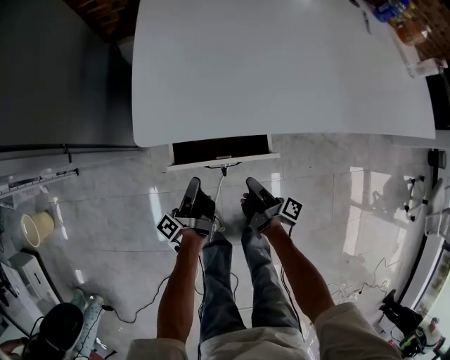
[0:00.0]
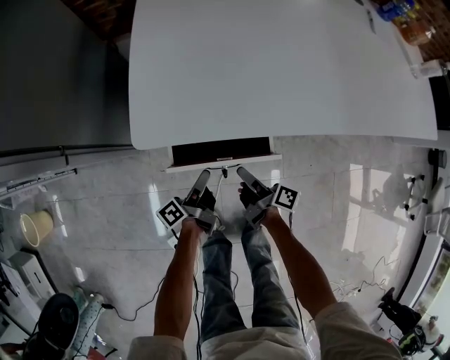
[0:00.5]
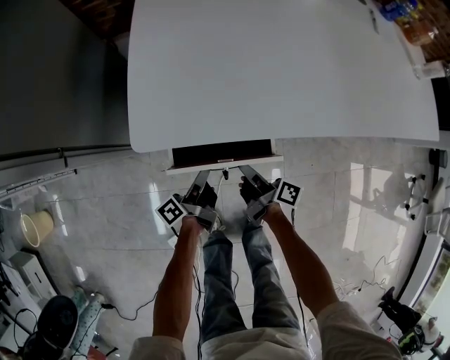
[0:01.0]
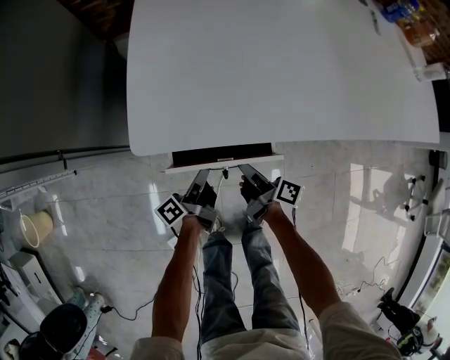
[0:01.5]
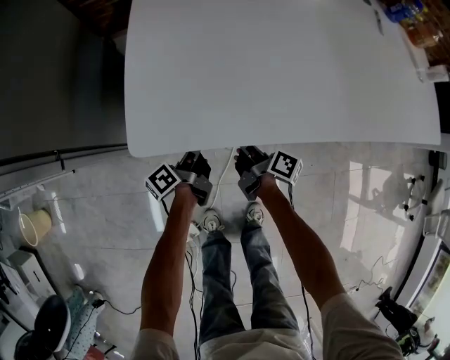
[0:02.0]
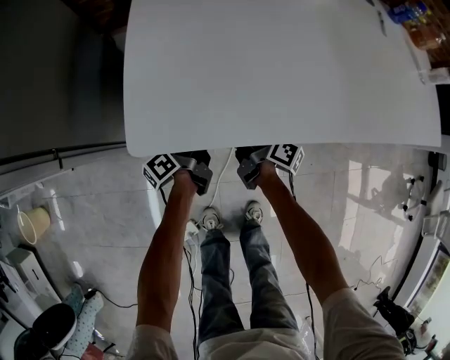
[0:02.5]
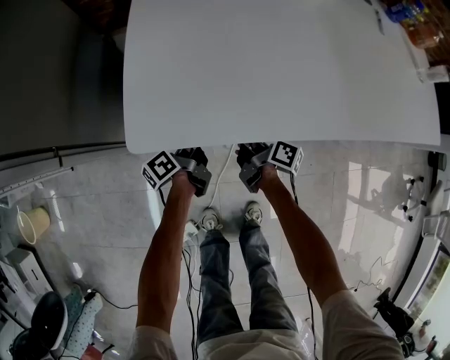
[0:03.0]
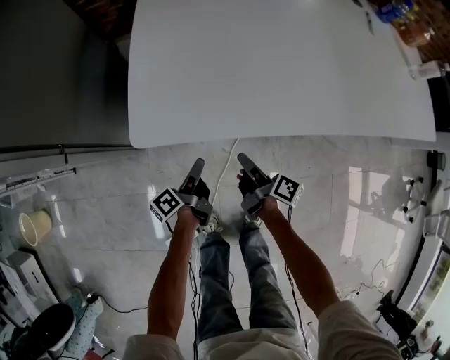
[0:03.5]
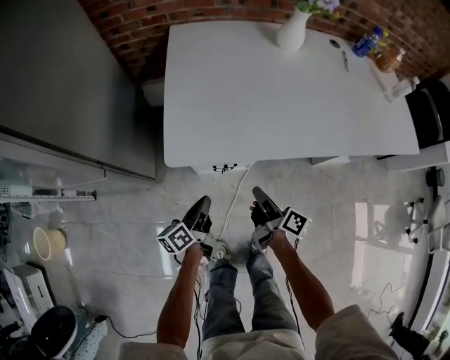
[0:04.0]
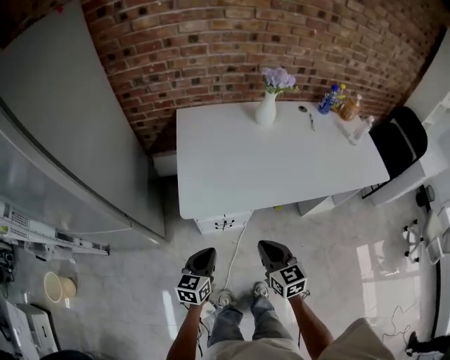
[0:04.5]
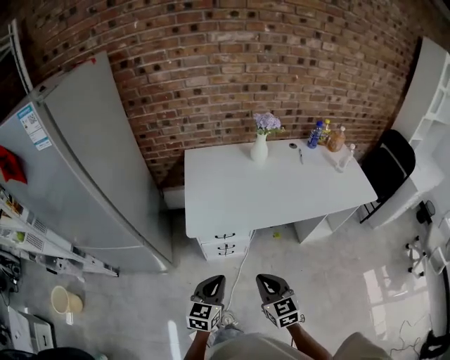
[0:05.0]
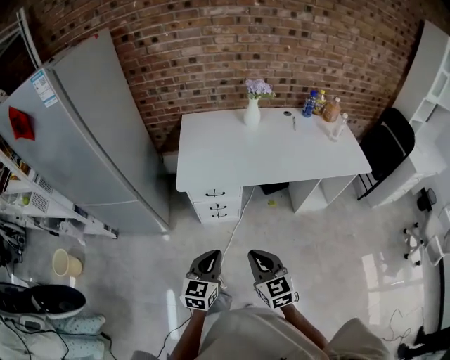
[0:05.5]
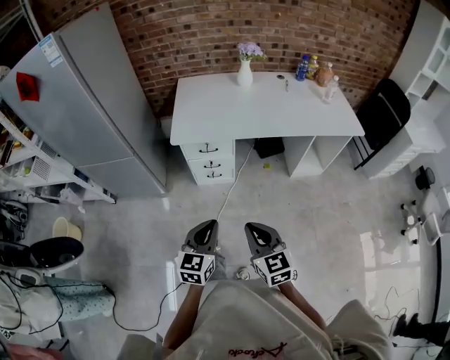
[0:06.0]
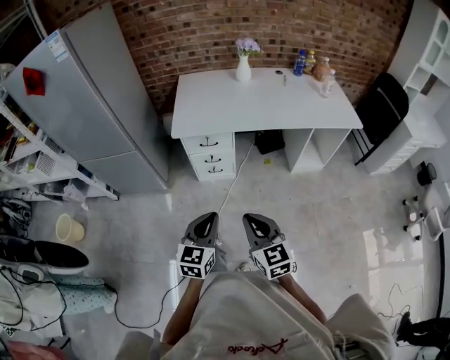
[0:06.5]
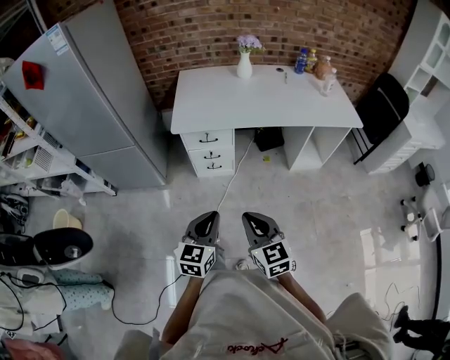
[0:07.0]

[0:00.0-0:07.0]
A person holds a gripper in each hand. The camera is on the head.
0:00.0 to 0:02.0: The grippers both shift forward by roughly 15 cm. The right gripper opens, then closes again; the left gripper swivels approximately 30 degrees, and opens, then closes once more.
0:02.0 to 0:03.5: Both grippers travel together backward, roughly 10 cm. The left gripper opens its fingers. Meanwhile the right gripper opens up.
0:03.5 to 0:05.0: The grippers both shift upward and backward by some 40 cm. The right gripper rolls counterclockwise, seen from behind, by roughly 80 degrees, and closes, while the left gripper twists some 80 degrees clockwise, seen from behind, and closes.
0:05.0 to 0:07.0: The left gripper travels backward and to the right by roughly 30 cm; the right gripper is displaced backward by about 25 cm.

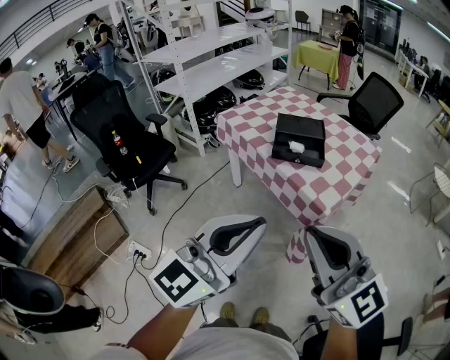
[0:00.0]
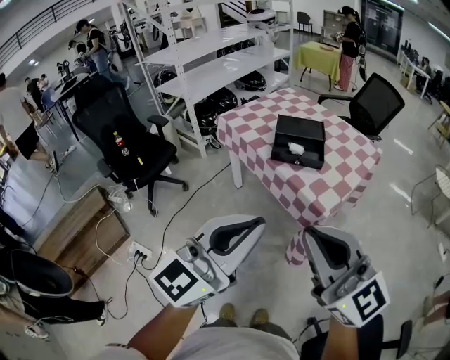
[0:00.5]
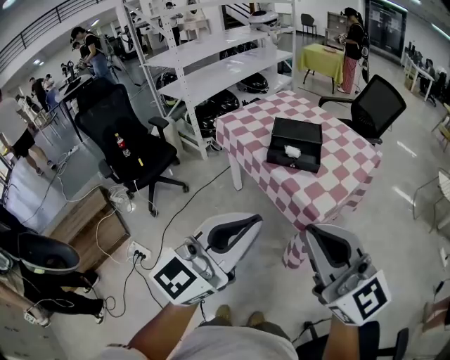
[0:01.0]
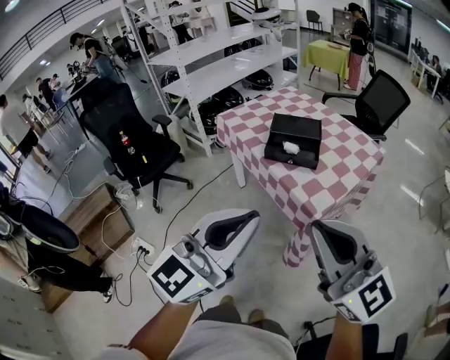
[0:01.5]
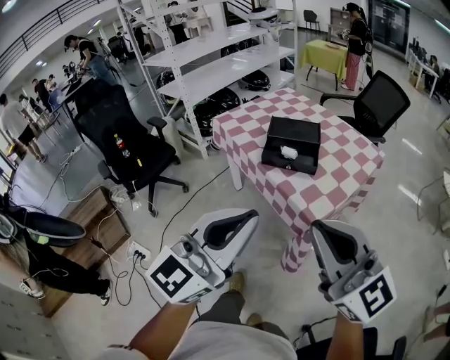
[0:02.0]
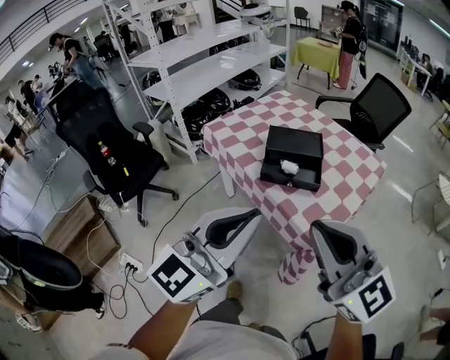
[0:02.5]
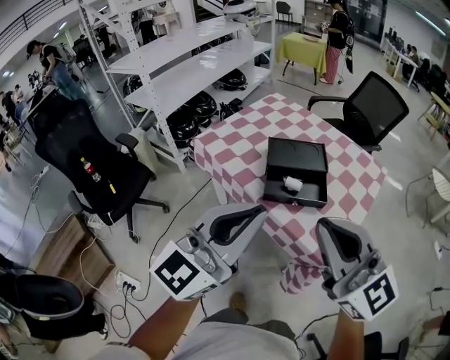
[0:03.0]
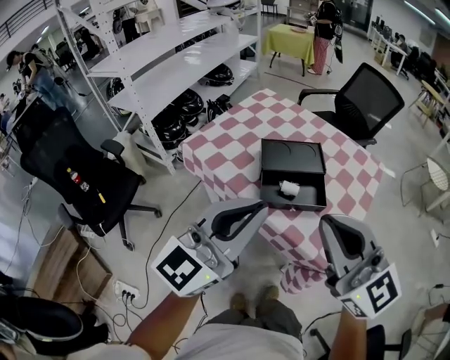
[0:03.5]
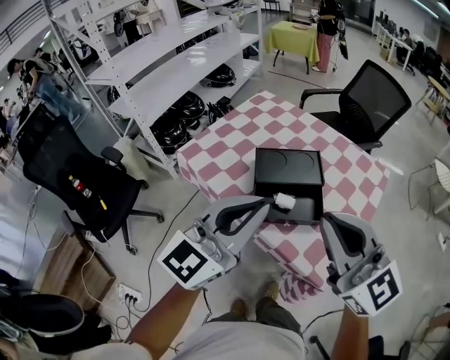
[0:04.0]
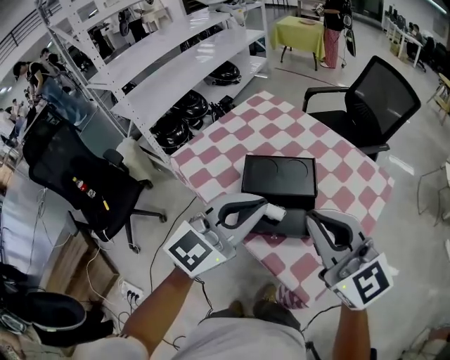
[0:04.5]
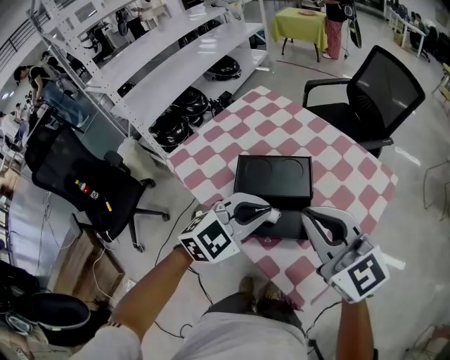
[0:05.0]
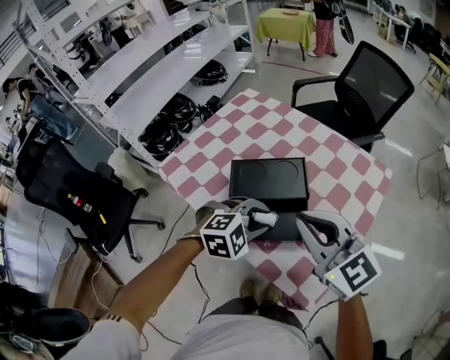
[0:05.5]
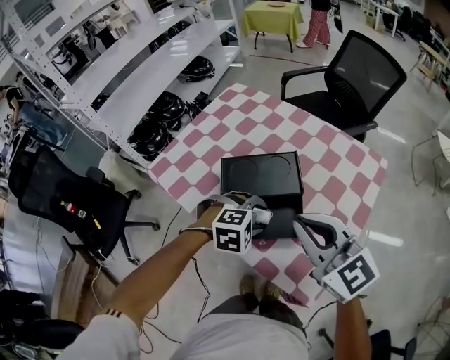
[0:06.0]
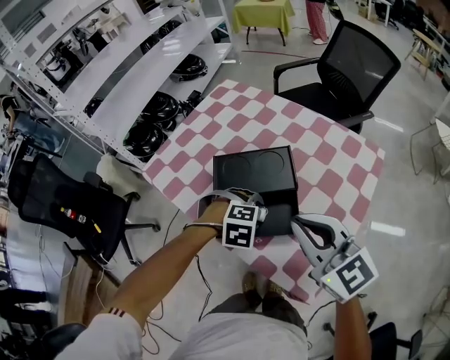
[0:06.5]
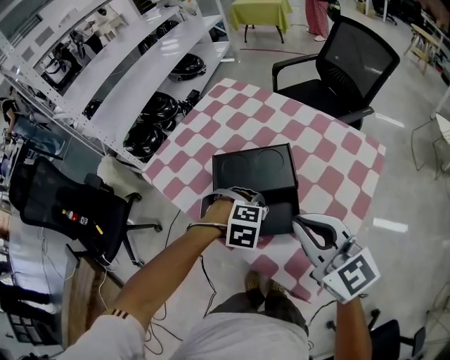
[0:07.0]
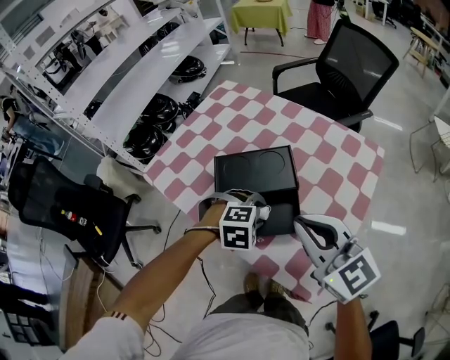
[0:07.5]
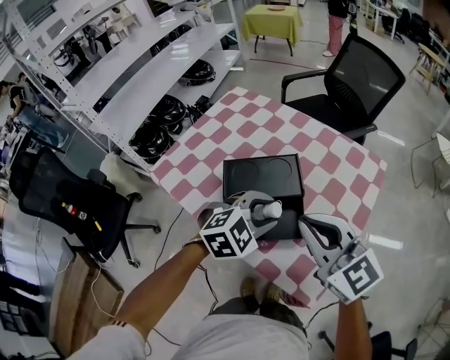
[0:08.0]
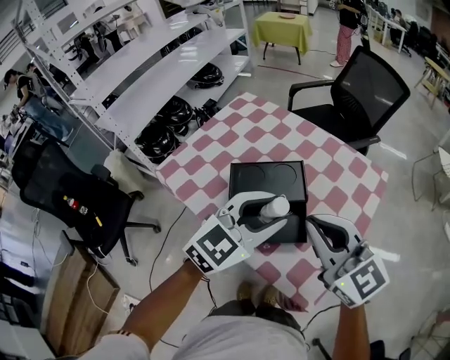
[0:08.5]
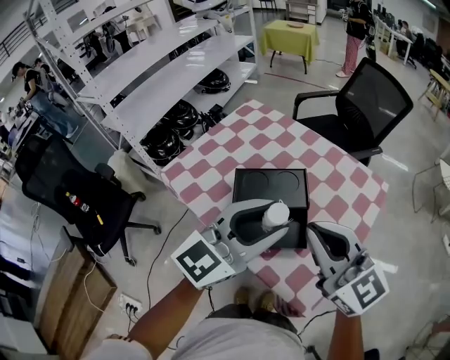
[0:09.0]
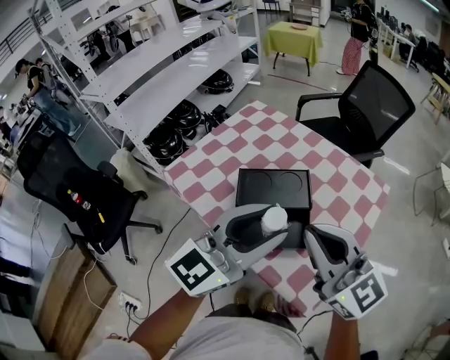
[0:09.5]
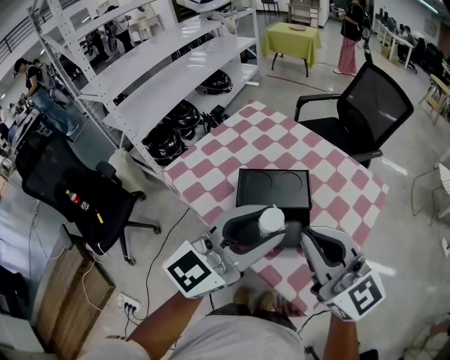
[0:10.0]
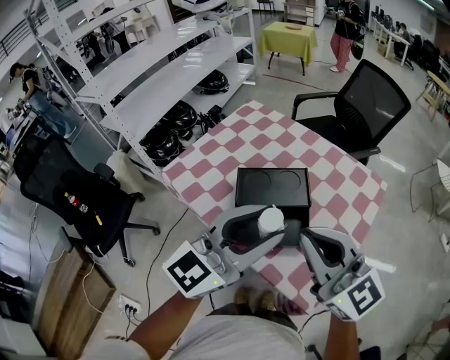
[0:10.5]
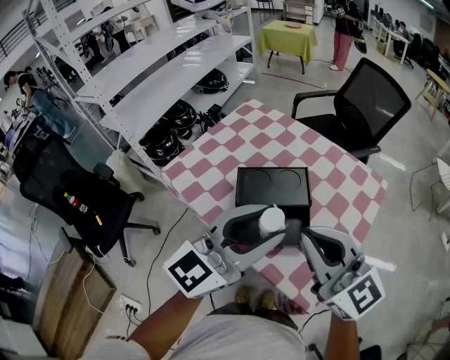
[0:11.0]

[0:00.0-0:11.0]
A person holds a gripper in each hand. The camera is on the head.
0:00.0 to 0:02.0: The two grippers go roughly 10 cm to the right and forward.
0:02.0 to 0:03.5: Both grippers move forward, roughly 25 cm.
0:03.5 to 0:05.5: The right gripper shifts about 25 cm forward, downward and to the right; the left gripper travels downward, forward and to the right by approximately 35 cm, points its fingers about 60 degrees further downward, and opens.
0:05.5 to 0:07.5: The left gripper moves downward, approximately 5 cm.
0:07.5 to 0:09.0: The right gripper travels upward by about 10 cm. The left gripper goes some 25 cm upward, and tilts its fingers approximately 70 degrees upward.
0:09.0 to 0:11.0: The grippers stay close to where they were, moving slightly.

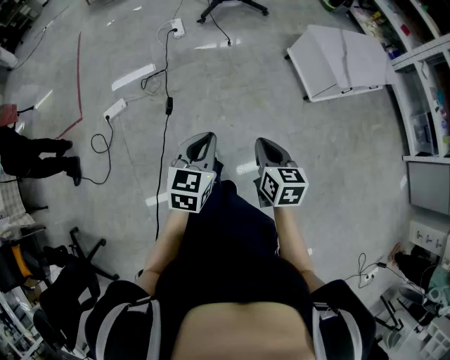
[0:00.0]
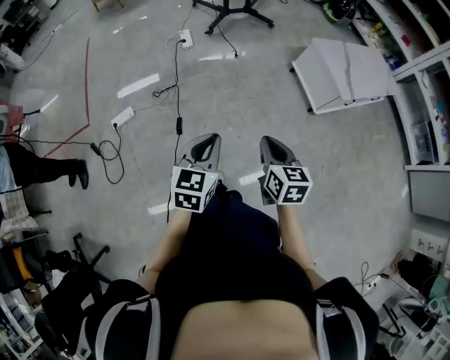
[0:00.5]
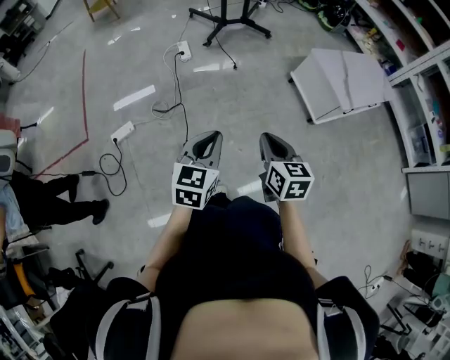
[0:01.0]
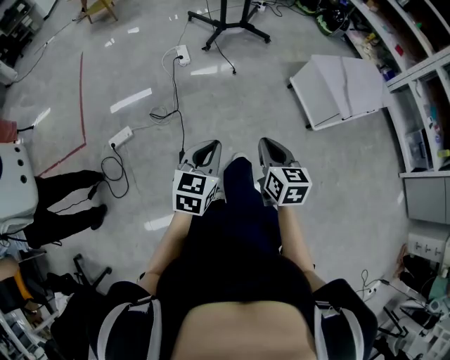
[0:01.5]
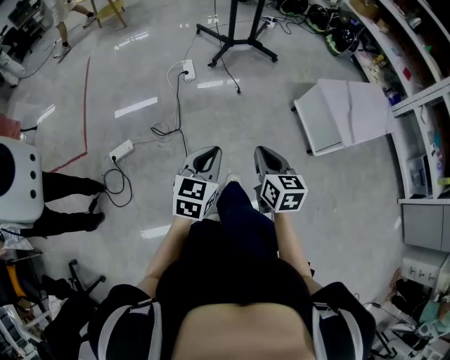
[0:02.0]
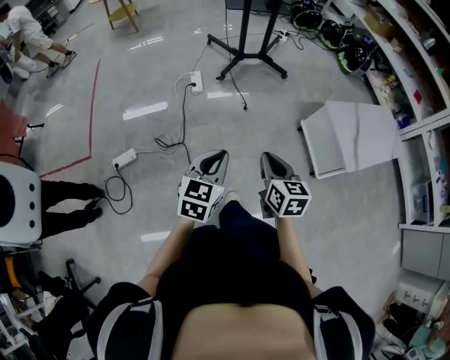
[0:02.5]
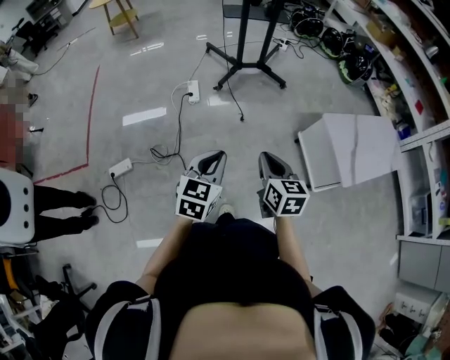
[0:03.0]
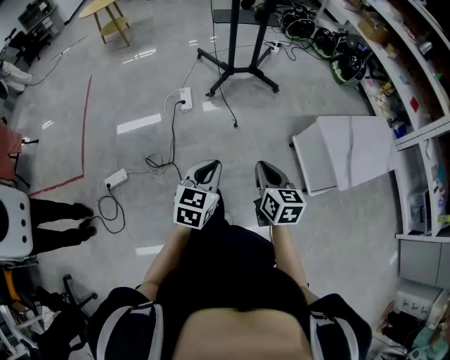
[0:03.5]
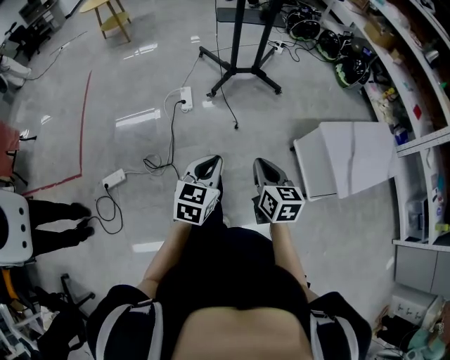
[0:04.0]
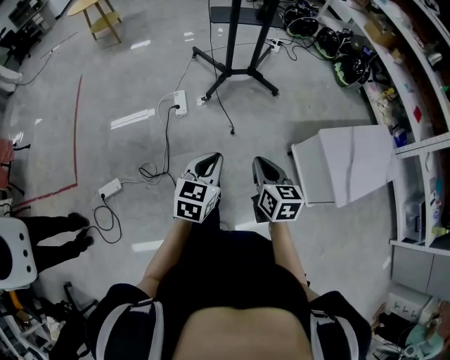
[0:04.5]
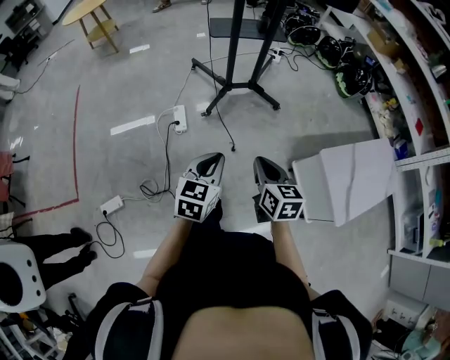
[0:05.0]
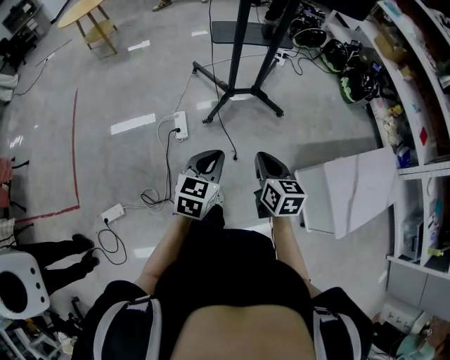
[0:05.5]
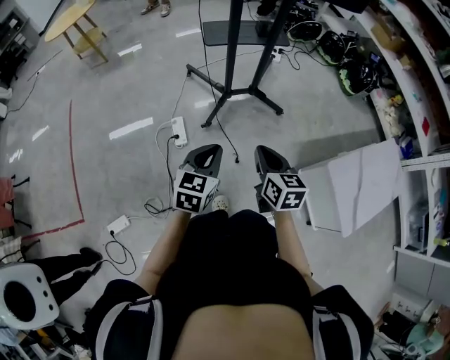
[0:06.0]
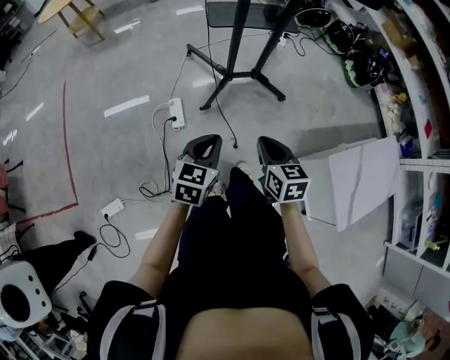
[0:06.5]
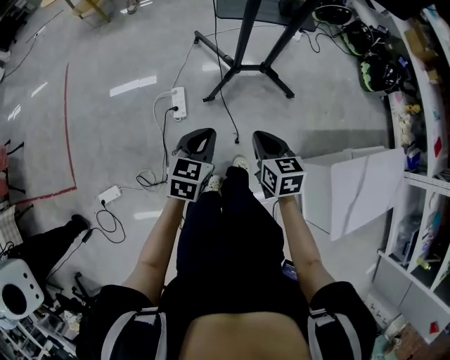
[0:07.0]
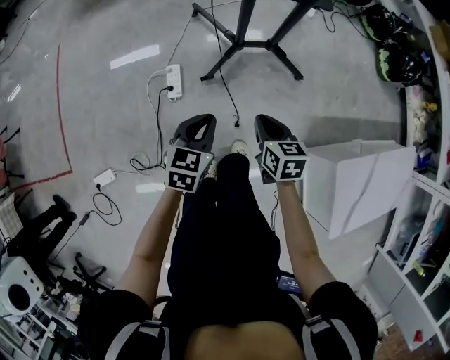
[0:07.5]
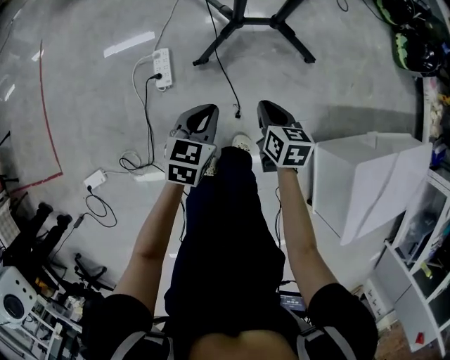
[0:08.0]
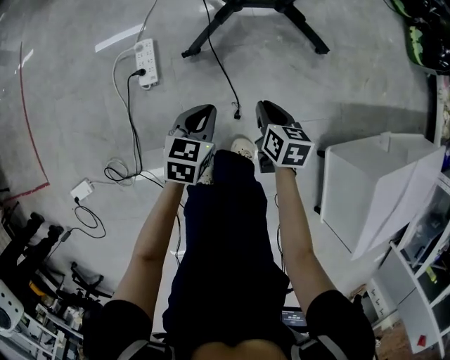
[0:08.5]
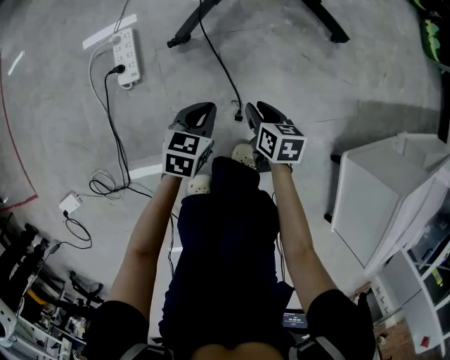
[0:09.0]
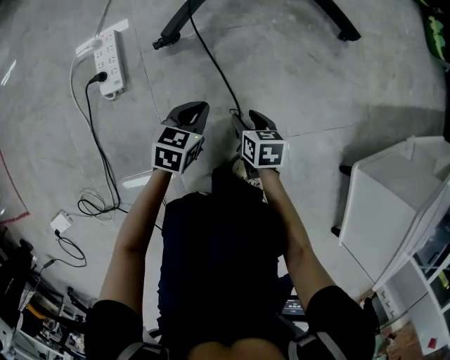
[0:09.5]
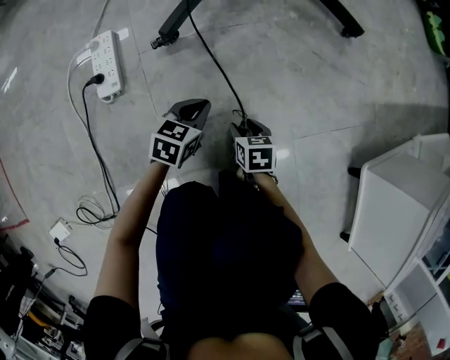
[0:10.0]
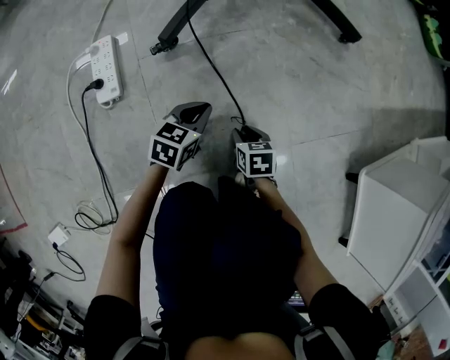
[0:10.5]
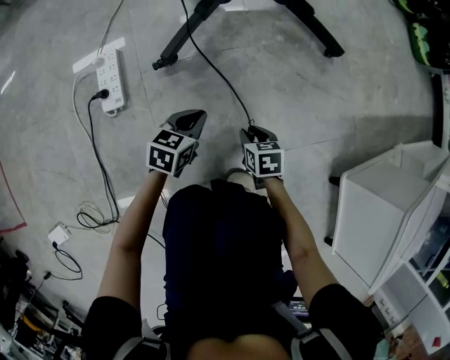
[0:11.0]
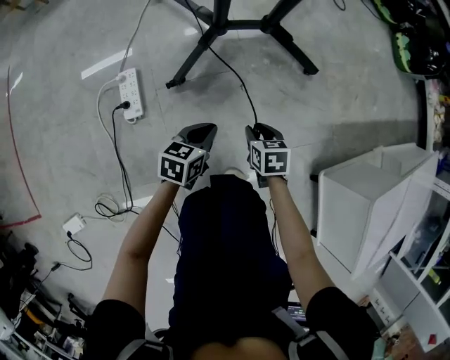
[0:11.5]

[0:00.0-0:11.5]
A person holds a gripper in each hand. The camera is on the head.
0:00.0 to 0:02.0: The two grippers go approximately 20 cm forward.
0:02.0 to 0:04.0: Both grippers travel together forward, some 25 cm.
0:04.0 to 0:06.0: Both grippers are carried forward, roughly 40 cm.
0:06.0 to 0:07.5: The two grippers go roughly 20 cm downward and forward.
0:07.5 to 0:09.5: The grippers both shift downward by some 60 cm. The right gripper opens its fingers.
0:09.5 to 0:11.5: Both grippers move upward, approximately 20 cm.
